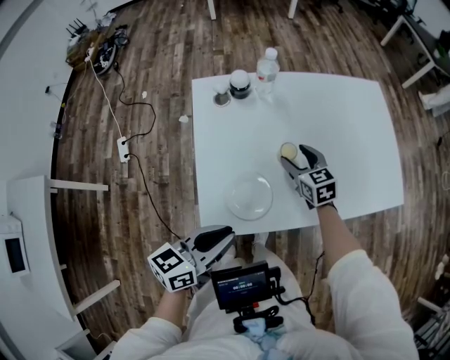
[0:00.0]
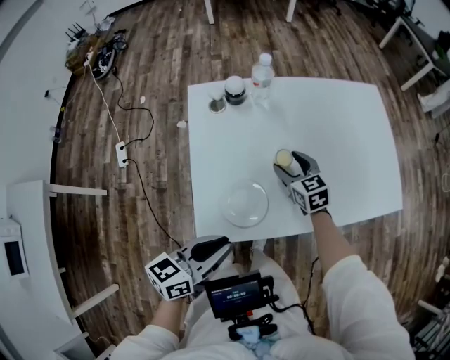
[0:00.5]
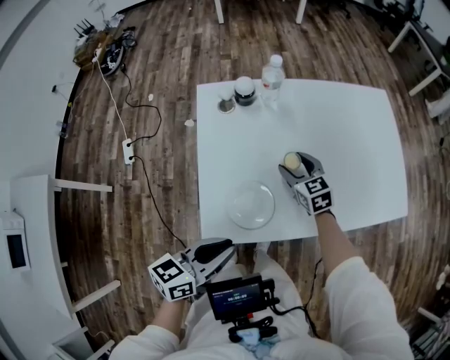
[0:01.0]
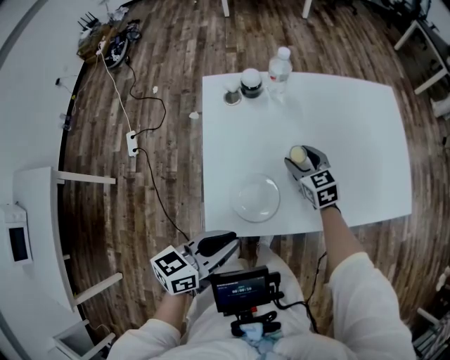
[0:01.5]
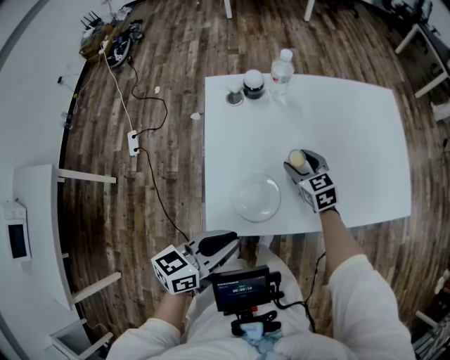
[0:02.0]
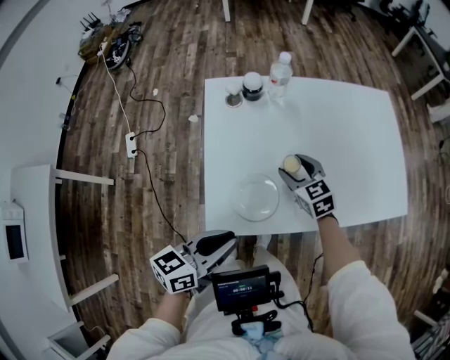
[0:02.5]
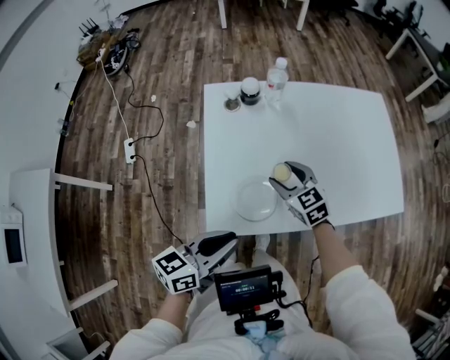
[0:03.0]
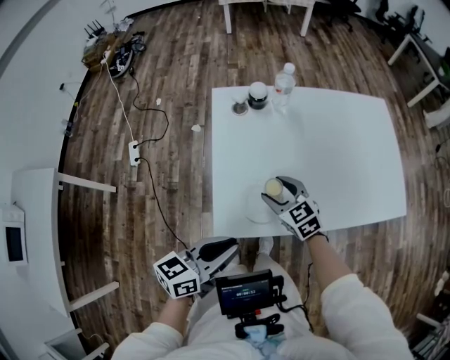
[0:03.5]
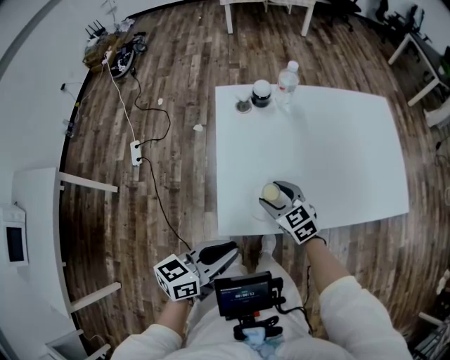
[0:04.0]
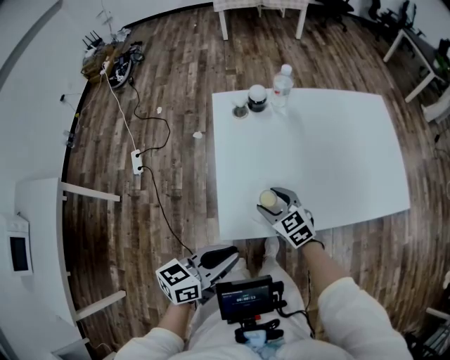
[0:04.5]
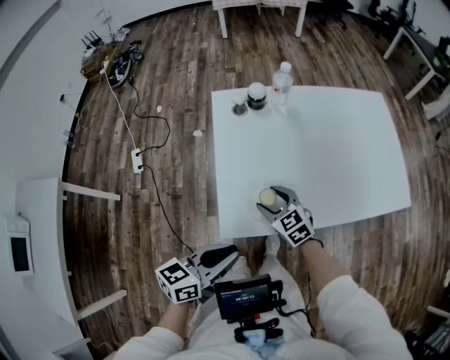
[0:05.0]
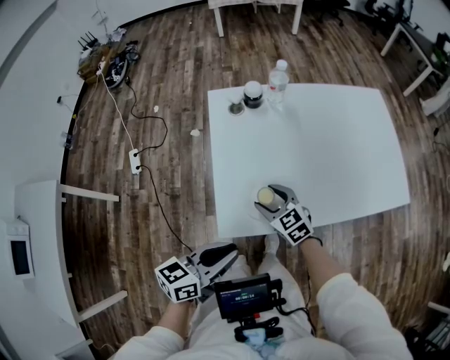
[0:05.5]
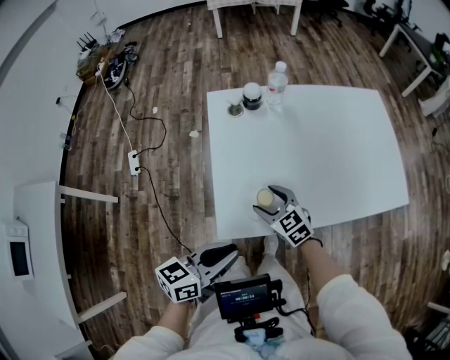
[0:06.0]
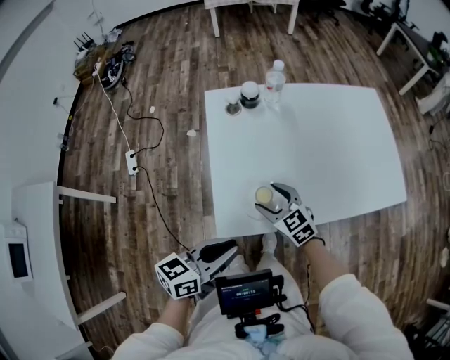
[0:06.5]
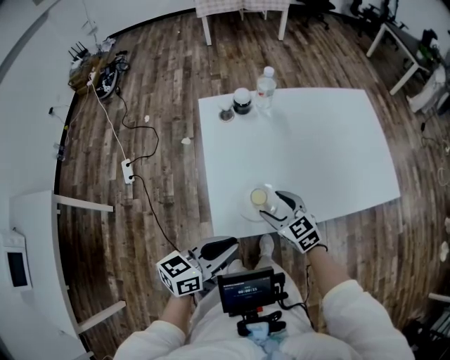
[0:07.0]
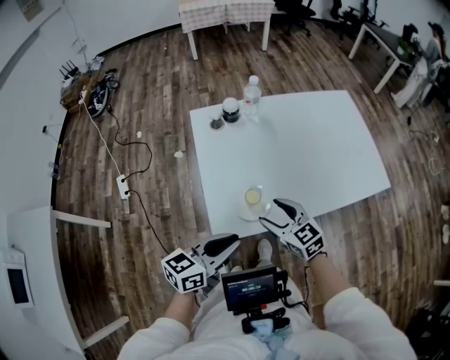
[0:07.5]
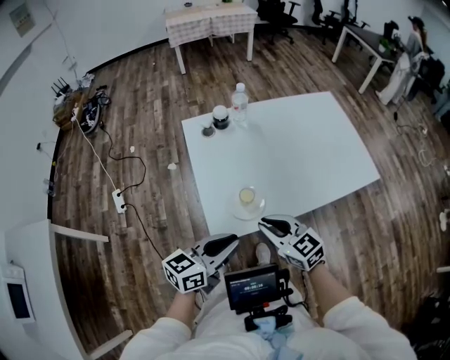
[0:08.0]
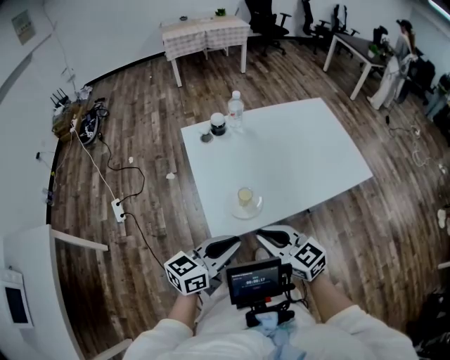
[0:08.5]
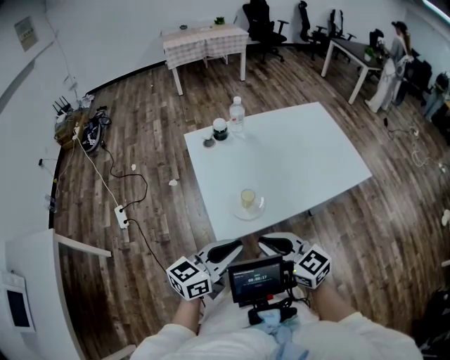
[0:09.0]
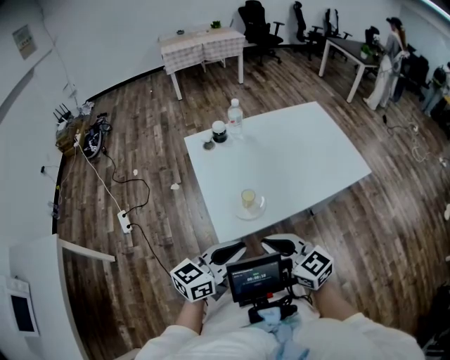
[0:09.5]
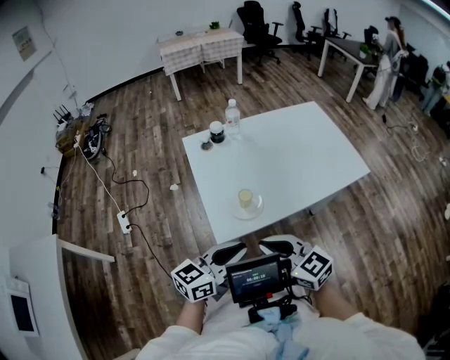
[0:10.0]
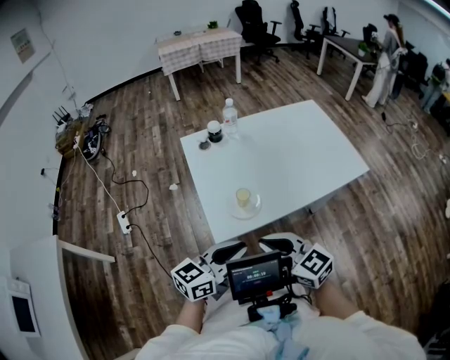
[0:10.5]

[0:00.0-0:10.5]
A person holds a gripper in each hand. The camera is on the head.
0:00.0 to 0:02.0: The grippers move only a little.
0:02.0 to 0:04.0: The left gripper shifts by some 5 cm. Meanwhile the right gripper goes roughly 15 cm backward and to the left.
0:04.0 to 0:06.5: The grippers make only small movements.
0:06.5 to 0:08.5: The right gripper shifts roughly 20 cm backward and upward, and closes up. The left gripper changes place by approximately 5 cm.
0:08.5 to 0:10.5: The right gripper moves some 5 cm.

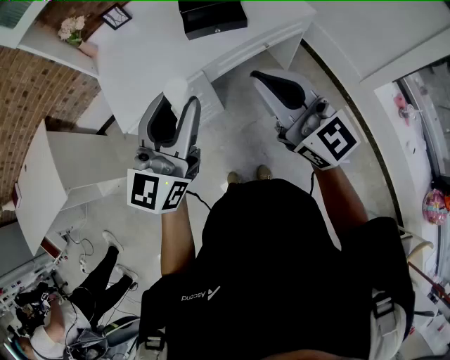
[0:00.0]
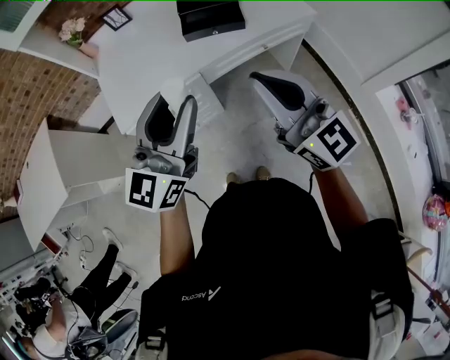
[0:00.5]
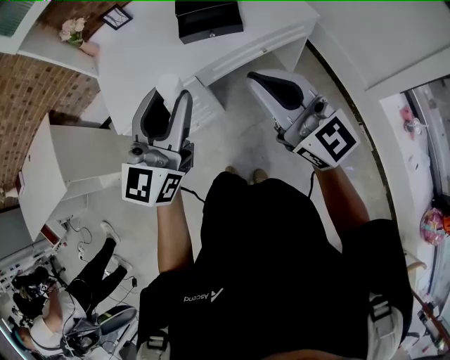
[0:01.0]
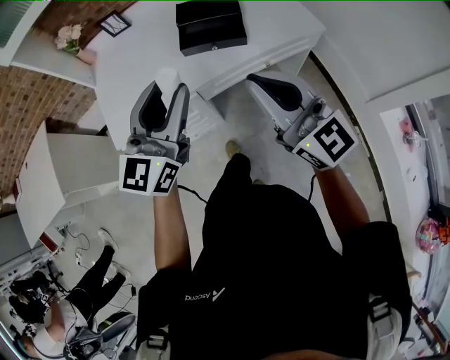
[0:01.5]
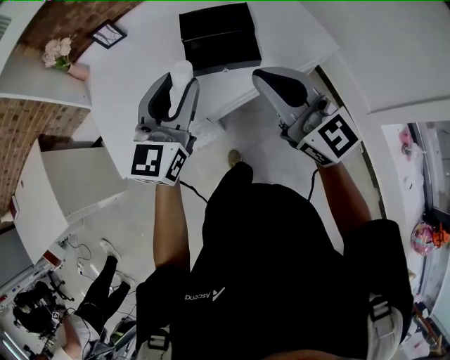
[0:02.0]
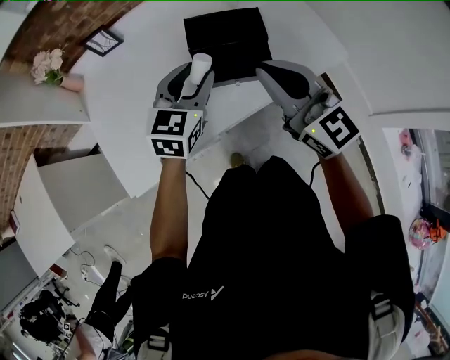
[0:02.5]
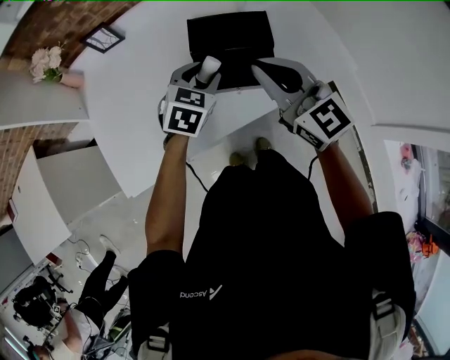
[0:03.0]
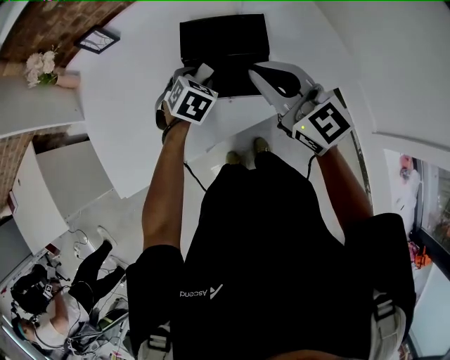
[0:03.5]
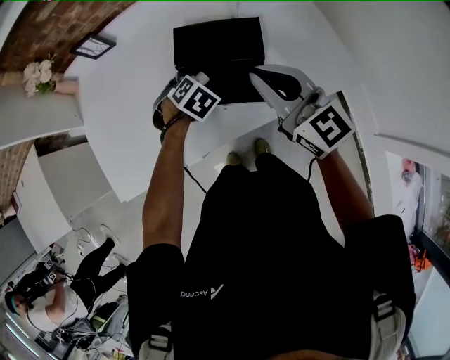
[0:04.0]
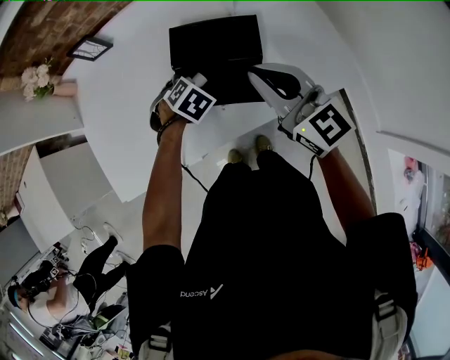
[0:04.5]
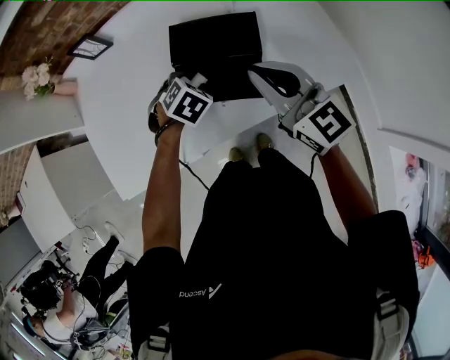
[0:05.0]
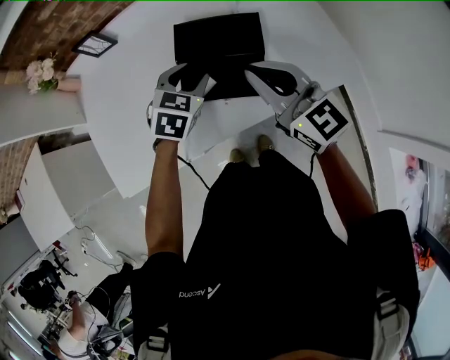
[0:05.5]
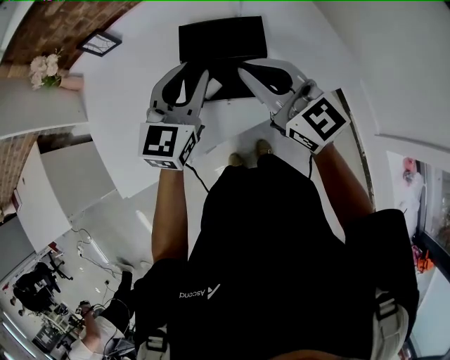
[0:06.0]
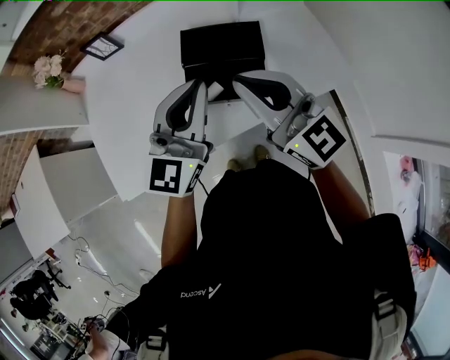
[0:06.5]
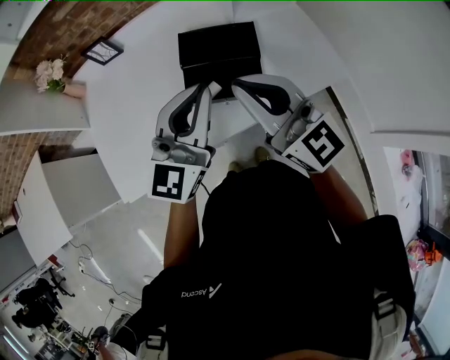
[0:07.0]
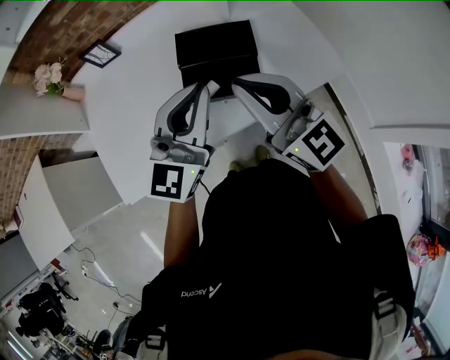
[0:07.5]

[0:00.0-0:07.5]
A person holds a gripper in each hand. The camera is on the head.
0:00.0 to 0:02.0: The two grippers go some 25 cm forward.
0:02.0 to 0:04.0: The right gripper travels forward and downward by about 25 cm. The left gripper travels downward and forward by about 35 cm, and points its fingers about 70 degrees further downward.
0:04.0 to 0:05.5: The left gripper goes approximately 10 cm upward, and swivels about 30 degrees.
0:05.5 to 0:07.5: The left gripper goes about 25 cm upward and backward, points its fingers roughly 50 degrees further upward, and closes up, while the right gripper heads upward and backward, covering roughly 15 cm.

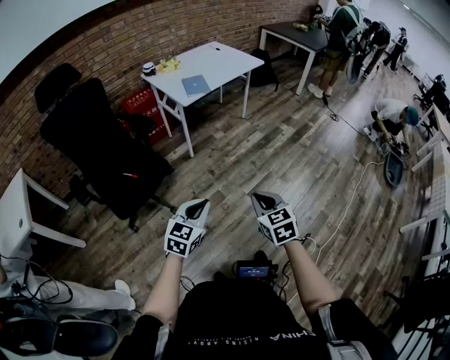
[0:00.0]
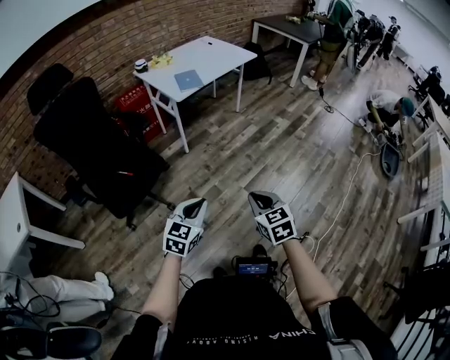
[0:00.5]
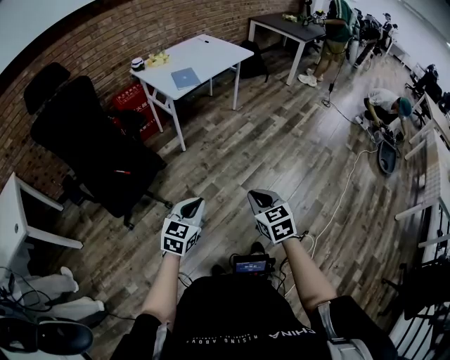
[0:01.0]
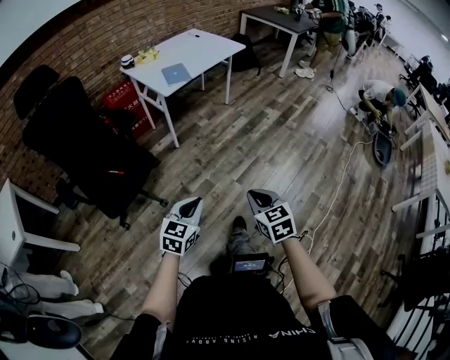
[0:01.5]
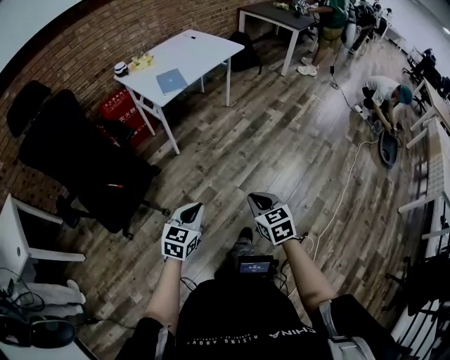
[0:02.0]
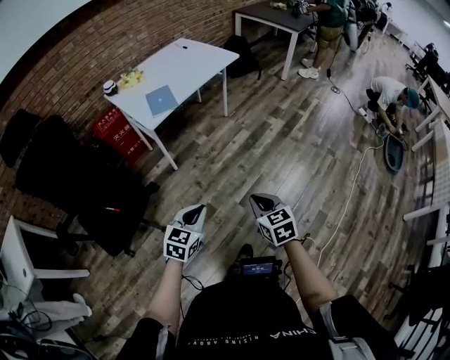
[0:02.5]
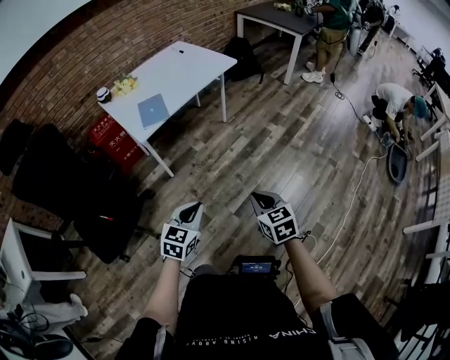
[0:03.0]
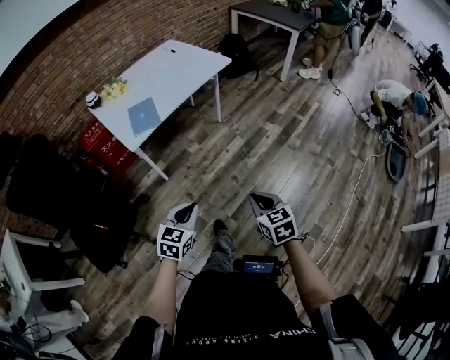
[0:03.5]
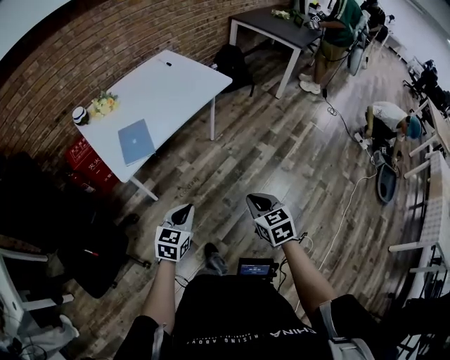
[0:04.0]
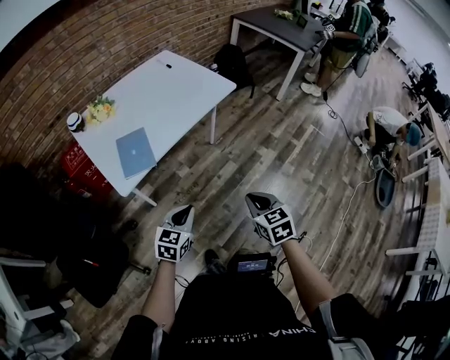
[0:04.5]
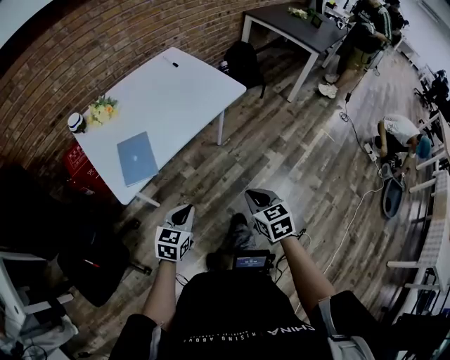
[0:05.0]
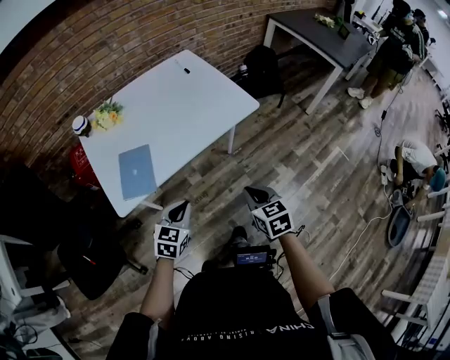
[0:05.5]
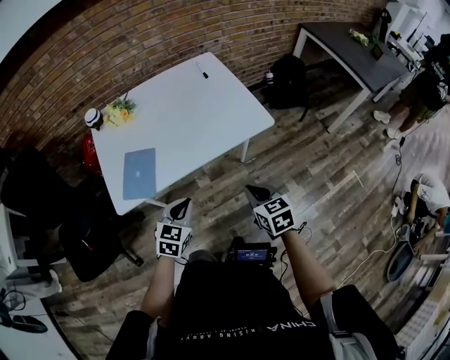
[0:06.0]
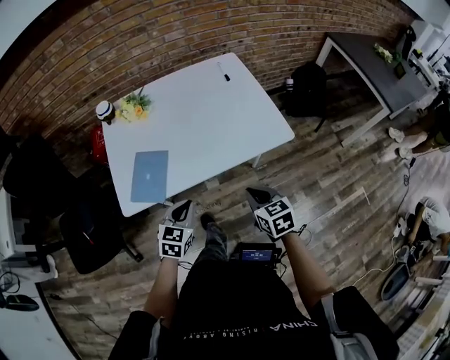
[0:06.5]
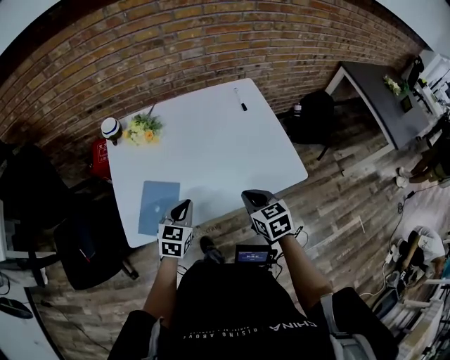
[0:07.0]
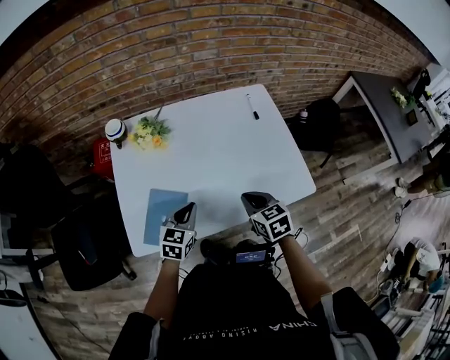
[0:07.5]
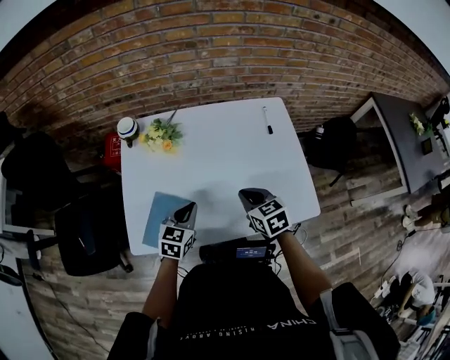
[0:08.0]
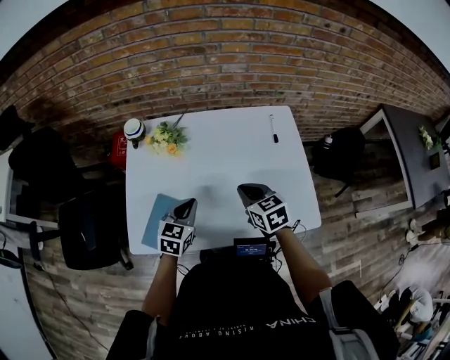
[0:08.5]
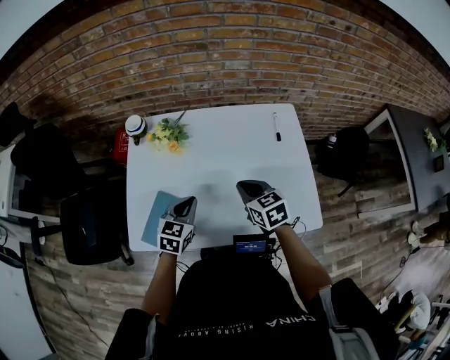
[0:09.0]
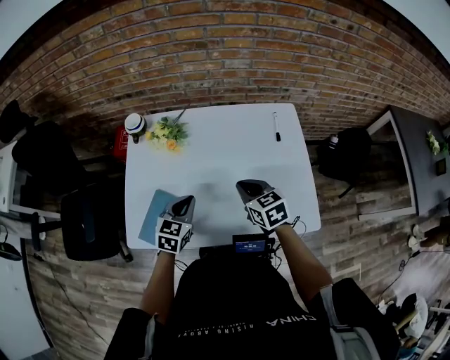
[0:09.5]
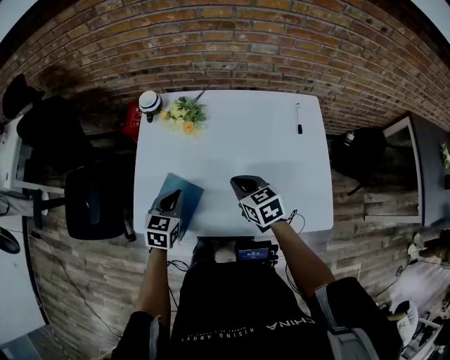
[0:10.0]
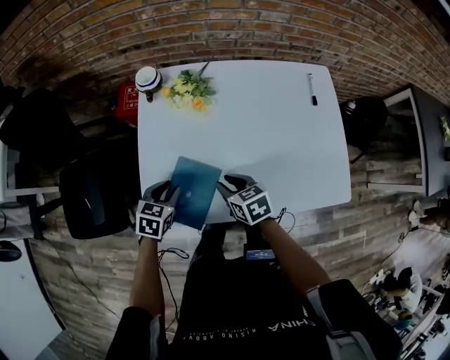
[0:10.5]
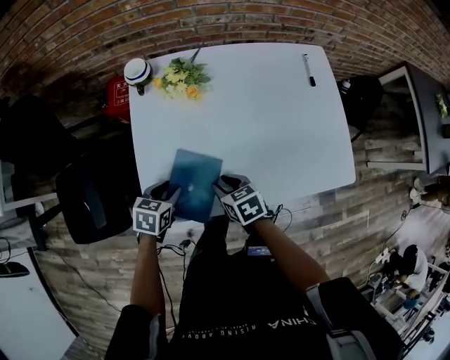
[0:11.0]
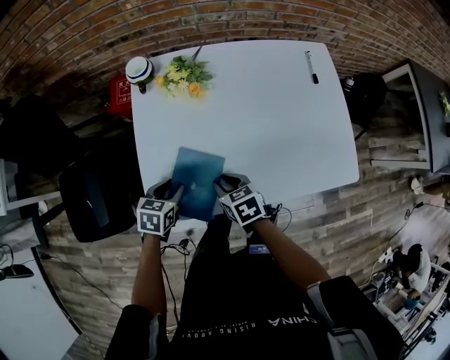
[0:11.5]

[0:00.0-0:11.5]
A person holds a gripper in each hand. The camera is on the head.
0:00.0 to 0:02.0: The left gripper moves forward and downward, roughly 10 cm. Meanwhile the right gripper is displaced forward by approximately 5 cm.
0:02.0 to 0:04.0: The two grippers travel together, forward, about 50 cm.
0:04.0 to 0:06.0: The right gripper ends up some 40 cm from where it was, and rotates approximately 20 degrees. The left gripper ends up about 30 cm from where it was, and turns by approximately 20 degrees.
0:06.0 to 0:07.5: The two grippers go roughly 25 cm forward and to the left.
0:07.5 to 0:09.5: The left gripper goes roughly 5 cm forward, while the right gripper shifts about 10 cm forward.
0:09.5 to 0:11.5: The grippers both shift to the left and downward by roughly 25 cm. The left gripper rotates approximately 30 degrees, and opens, while the right gripper rotates approximately 20 degrees, and opens.
